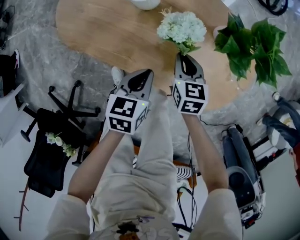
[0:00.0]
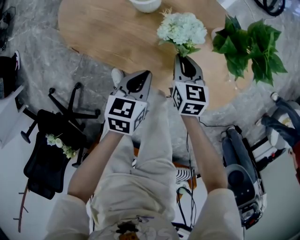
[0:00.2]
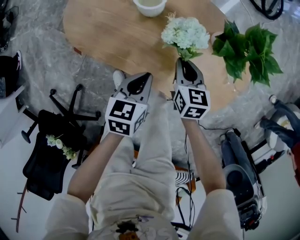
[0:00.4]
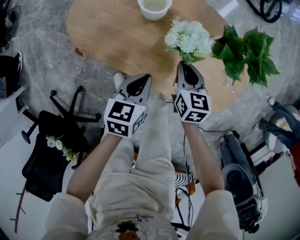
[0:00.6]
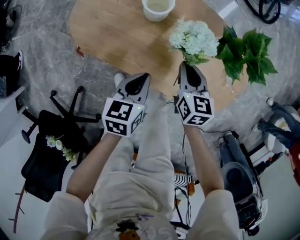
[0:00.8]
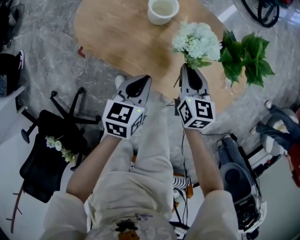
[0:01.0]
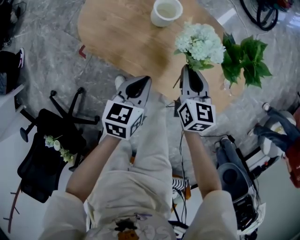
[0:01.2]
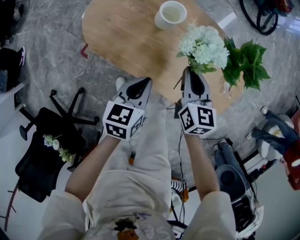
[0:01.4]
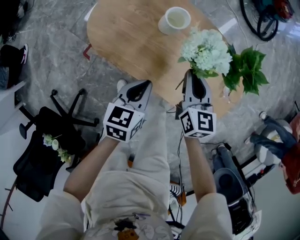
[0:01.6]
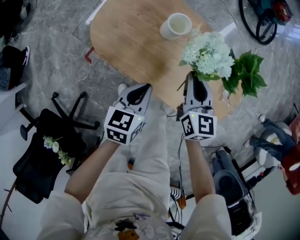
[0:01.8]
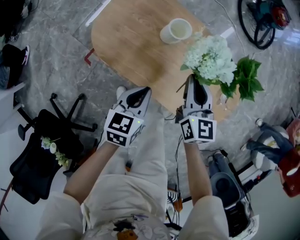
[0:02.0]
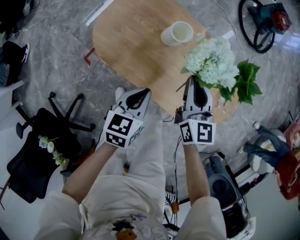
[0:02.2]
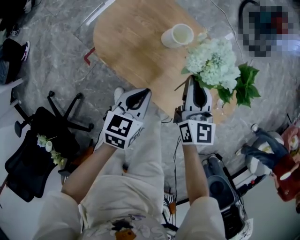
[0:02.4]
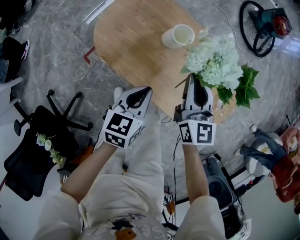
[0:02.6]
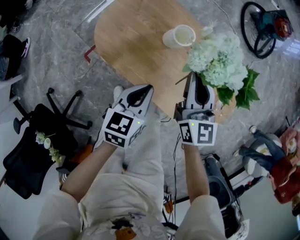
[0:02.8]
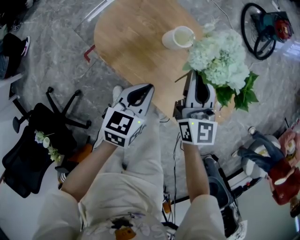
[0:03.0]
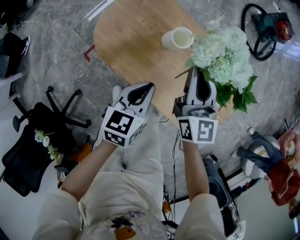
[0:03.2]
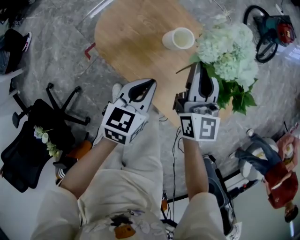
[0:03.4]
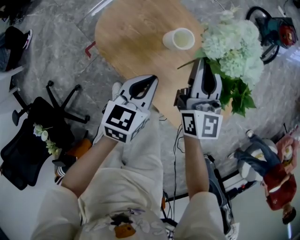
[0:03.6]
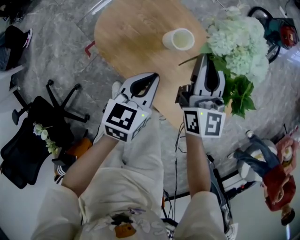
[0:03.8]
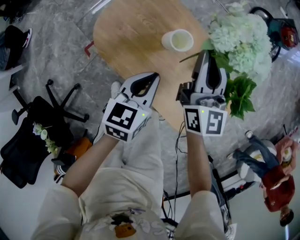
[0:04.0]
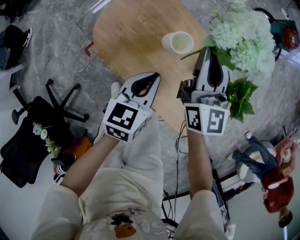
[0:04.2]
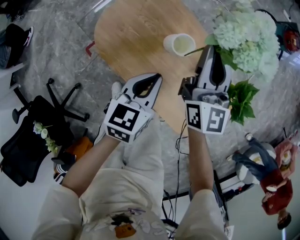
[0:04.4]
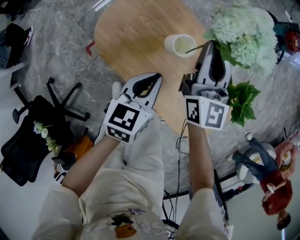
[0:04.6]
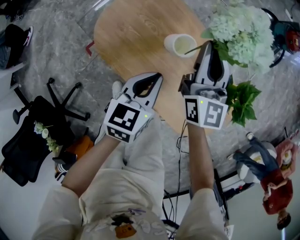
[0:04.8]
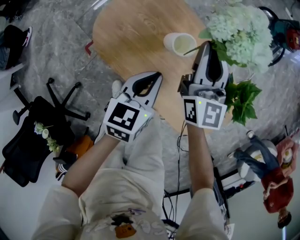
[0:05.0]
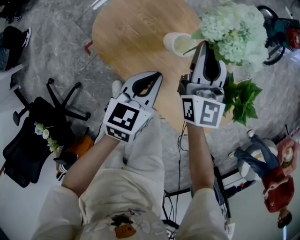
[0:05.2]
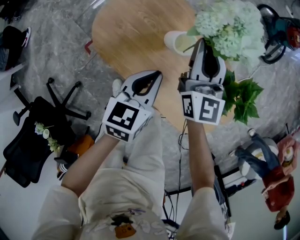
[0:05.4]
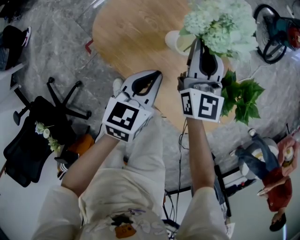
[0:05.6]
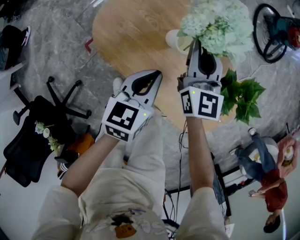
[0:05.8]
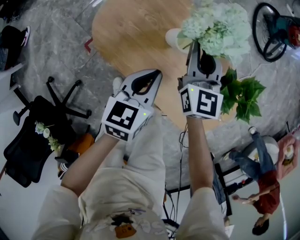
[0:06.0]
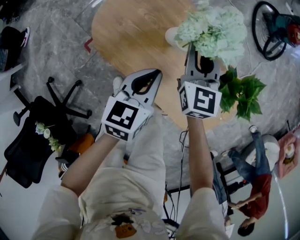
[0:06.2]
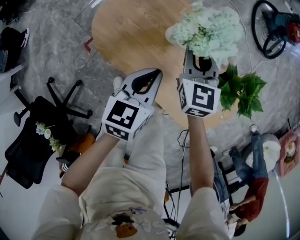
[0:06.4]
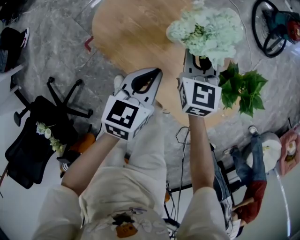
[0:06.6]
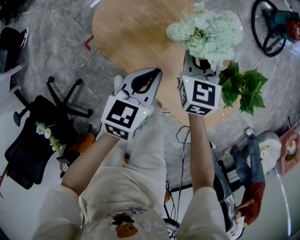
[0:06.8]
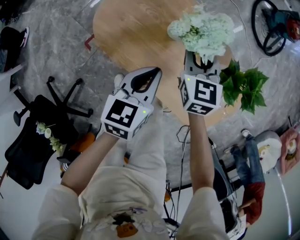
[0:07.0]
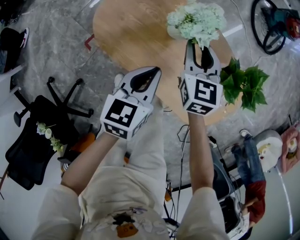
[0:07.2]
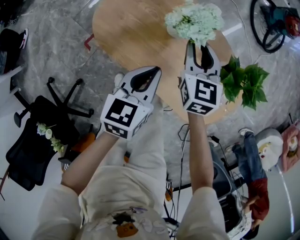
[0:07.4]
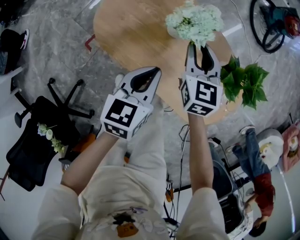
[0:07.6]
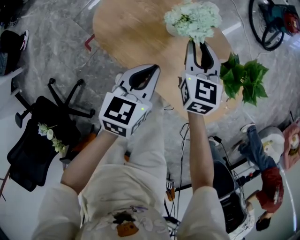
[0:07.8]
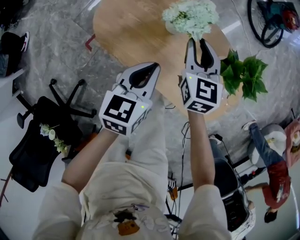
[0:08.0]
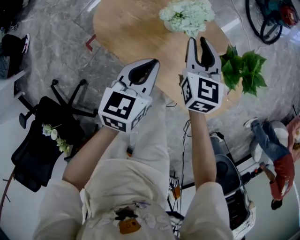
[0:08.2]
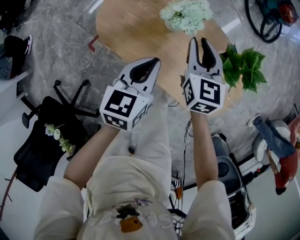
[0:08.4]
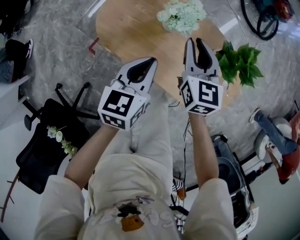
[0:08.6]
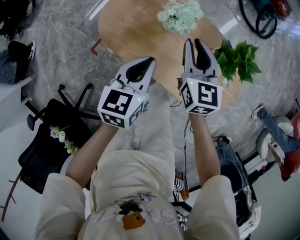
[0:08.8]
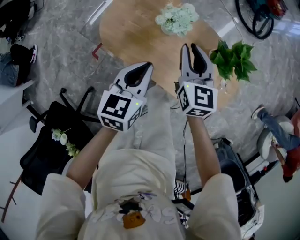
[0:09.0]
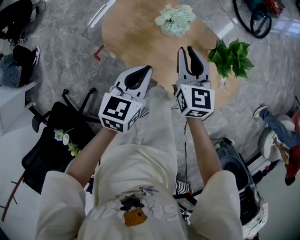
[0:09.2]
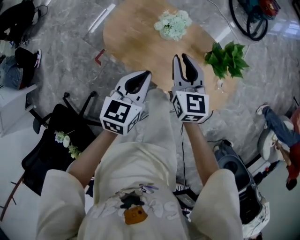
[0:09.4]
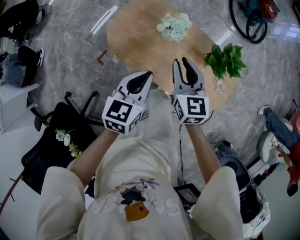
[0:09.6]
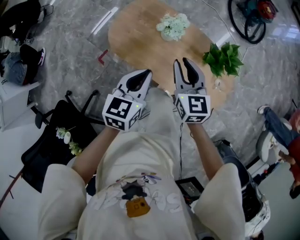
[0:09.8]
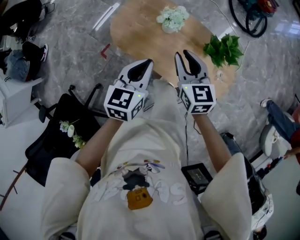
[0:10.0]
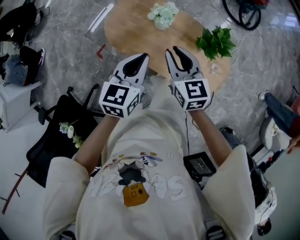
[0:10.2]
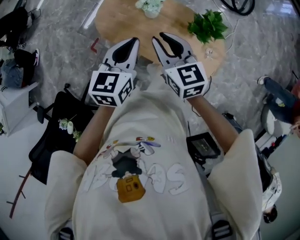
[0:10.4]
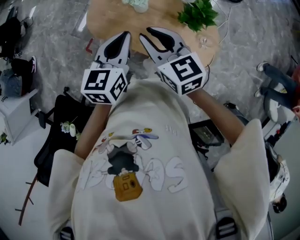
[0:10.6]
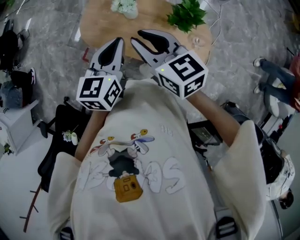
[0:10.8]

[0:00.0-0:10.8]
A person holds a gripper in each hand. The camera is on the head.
0:00.0 to 0:01.6: The left gripper is displaced upward and to the left by roughly 15 cm; the right gripper travels upward by approximately 20 cm, and changes its angle by about 20 degrees.
0:01.6 to 0:03.0: The right gripper shifts approximately 10 cm upward and forward, while the left gripper shifts by roughly 5 cm.
0:03.0 to 0:04.6: The right gripper shifts some 10 cm forward, while the left gripper travels forward by some 10 cm.
0:04.6 to 0:06.2: The right gripper moves downward, roughly 10 cm, and turns by some 20 degrees.
0:06.2 to 0:07.8: The grippers stay close to where they were, moving slightly.
0:07.8 to 0:09.2: The right gripper shifts approximately 15 cm upward and backward; the left gripper travels upward by approximately 10 cm.
0:09.2 to 0:10.8: The right gripper goes approximately 25 cm upward and backward, and rotates some 20 degrees. The left gripper moves upward, roughly 15 cm.

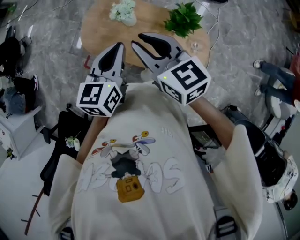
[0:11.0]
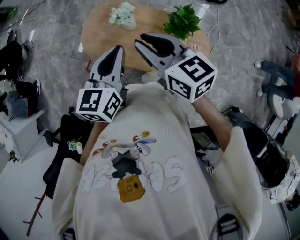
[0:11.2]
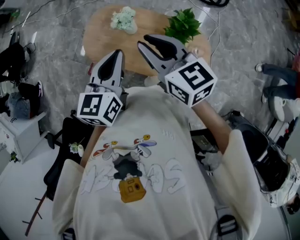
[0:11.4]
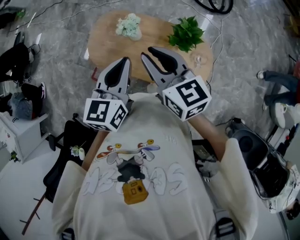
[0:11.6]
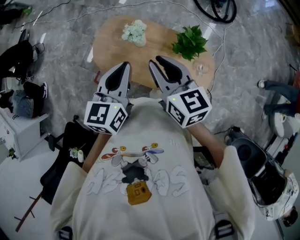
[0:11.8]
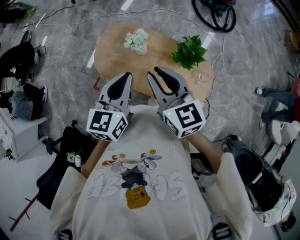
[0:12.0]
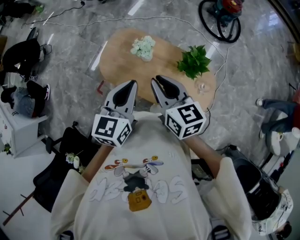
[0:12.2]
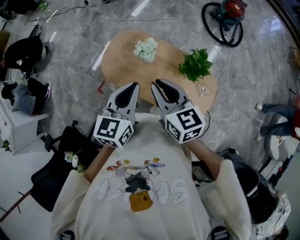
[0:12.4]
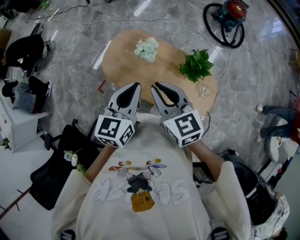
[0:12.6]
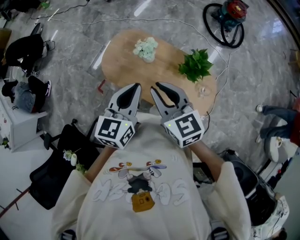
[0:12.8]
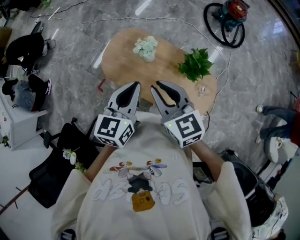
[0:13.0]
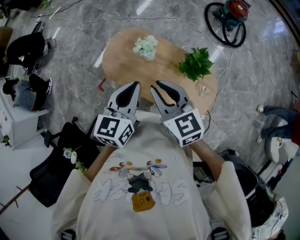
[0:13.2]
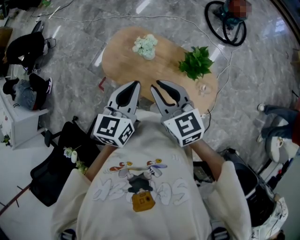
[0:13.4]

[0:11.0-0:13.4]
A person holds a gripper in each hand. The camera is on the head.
0:11.0 to 0:13.4: The grippers stay close to where they were, moving slightly.

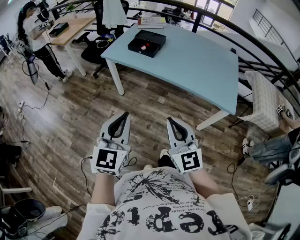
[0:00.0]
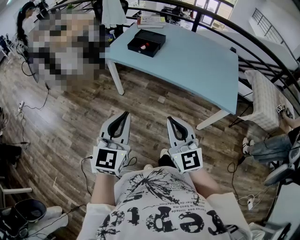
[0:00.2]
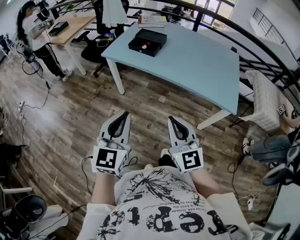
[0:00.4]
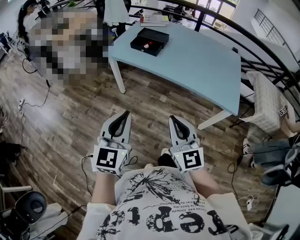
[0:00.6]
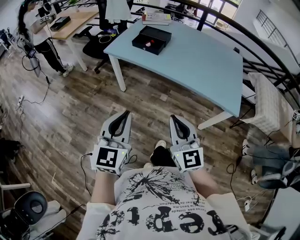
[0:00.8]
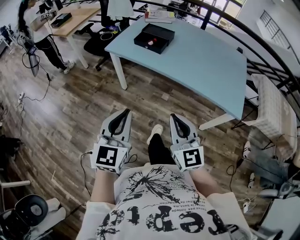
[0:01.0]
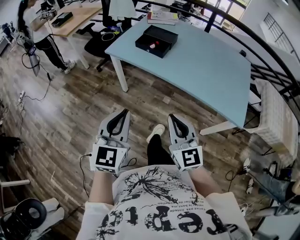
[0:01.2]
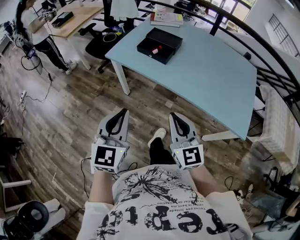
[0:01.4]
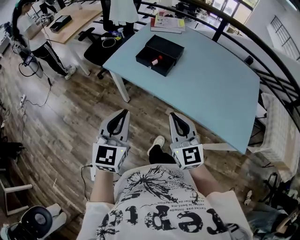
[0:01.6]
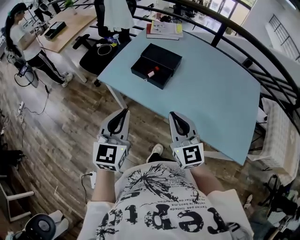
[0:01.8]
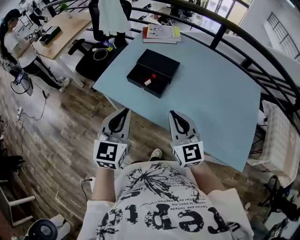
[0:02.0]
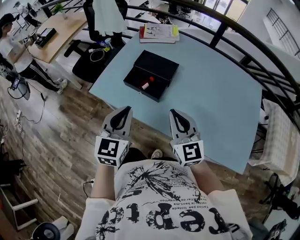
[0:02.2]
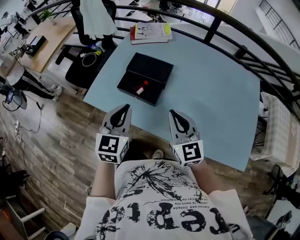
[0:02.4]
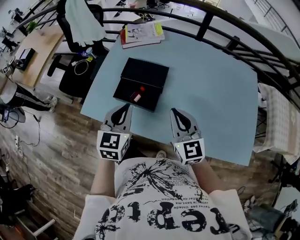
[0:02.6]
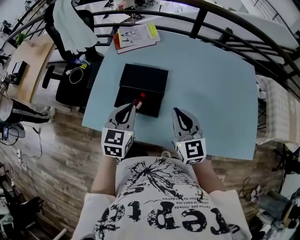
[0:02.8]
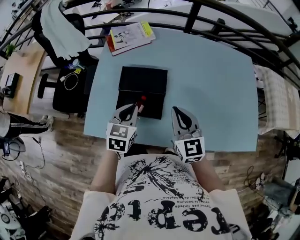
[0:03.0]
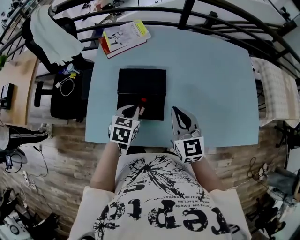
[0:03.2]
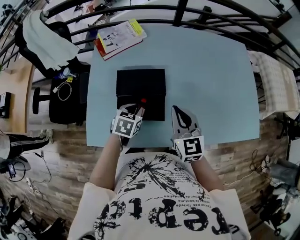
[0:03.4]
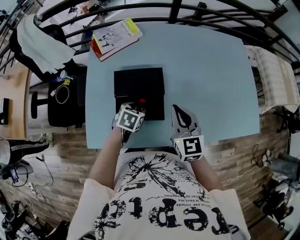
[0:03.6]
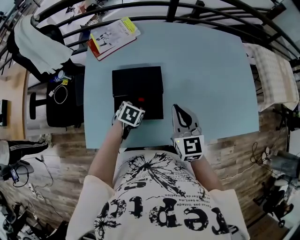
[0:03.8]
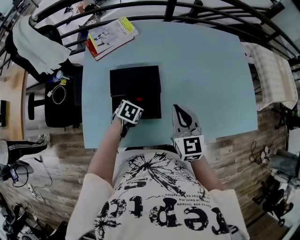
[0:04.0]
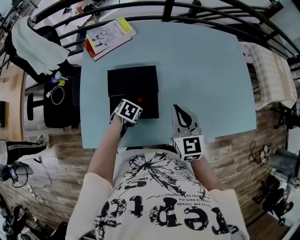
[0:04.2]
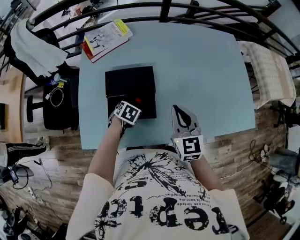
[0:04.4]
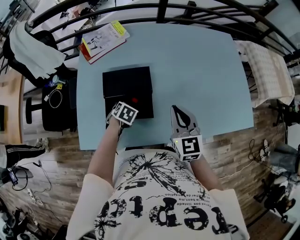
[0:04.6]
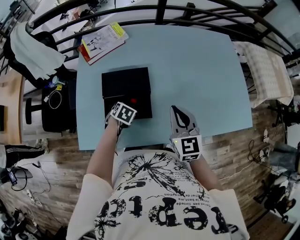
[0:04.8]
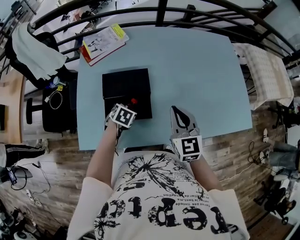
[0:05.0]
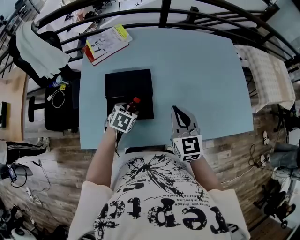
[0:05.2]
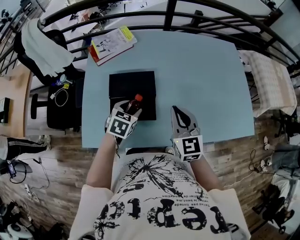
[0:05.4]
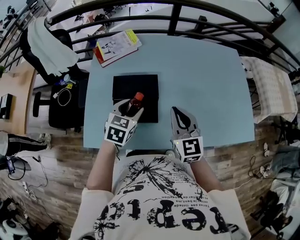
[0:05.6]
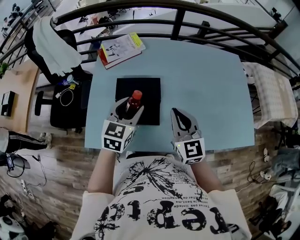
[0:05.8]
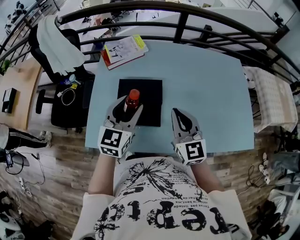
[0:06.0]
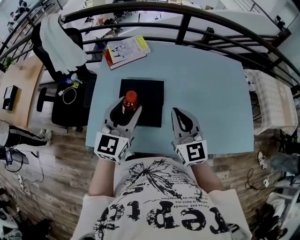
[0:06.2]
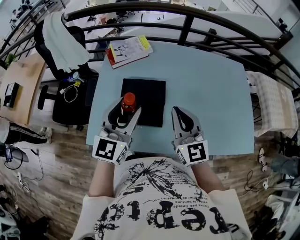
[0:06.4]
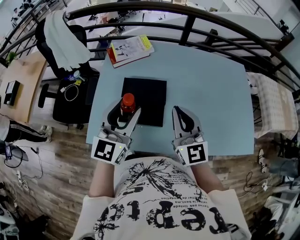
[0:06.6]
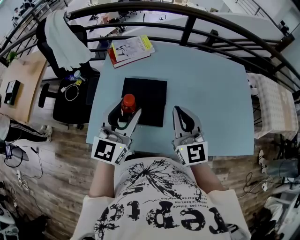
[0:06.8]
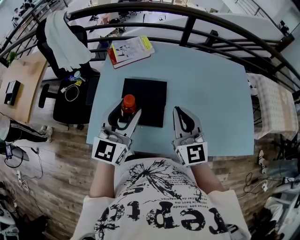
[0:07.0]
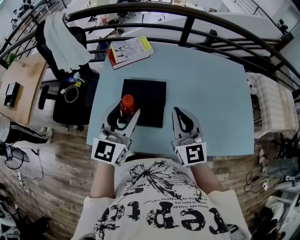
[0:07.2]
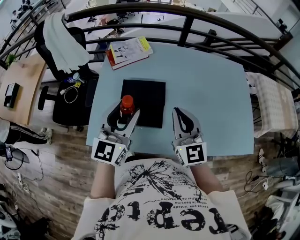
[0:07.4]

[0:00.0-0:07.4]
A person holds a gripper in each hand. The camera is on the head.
0:00.0 to 0:01.4: The grippers both shift forward by approximately 20 cm.
0:01.4 to 0:03.0: Both grippers are carried roughly 50 cm. The left gripper rotates approximately 40 degrees. The right gripper turns by some 30 degrees.
0:03.0 to 0:04.4: The left gripper travels downward by some 20 cm, angles its fingers downward, by approximately 40 degrees, and opens.
0:04.4 to 0:06.0: The right gripper travels upward by approximately 5 cm; the left gripper is displaced upward by some 30 cm, and angles its fingers upward, by about 60 degrees.
0:06.0 to 0:07.4: The left gripper shifts by about 5 cm.

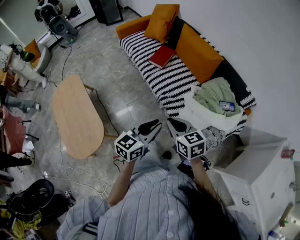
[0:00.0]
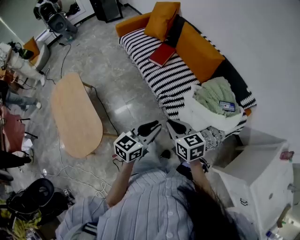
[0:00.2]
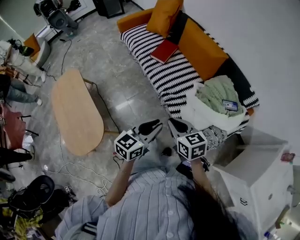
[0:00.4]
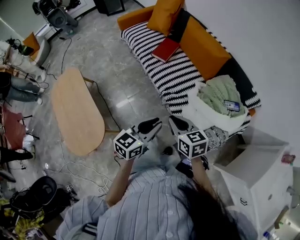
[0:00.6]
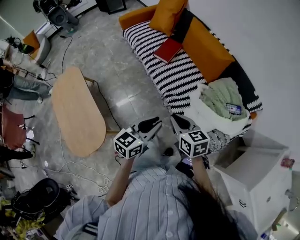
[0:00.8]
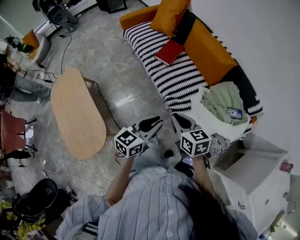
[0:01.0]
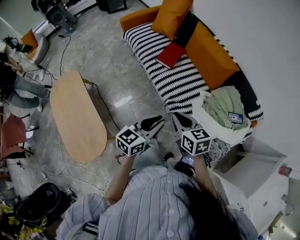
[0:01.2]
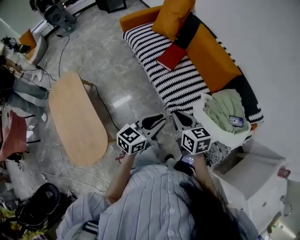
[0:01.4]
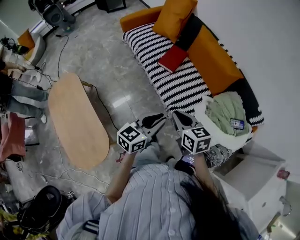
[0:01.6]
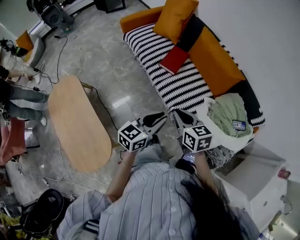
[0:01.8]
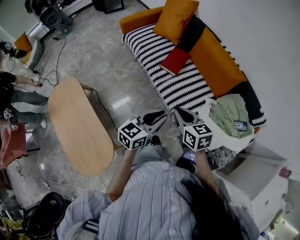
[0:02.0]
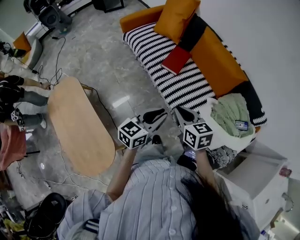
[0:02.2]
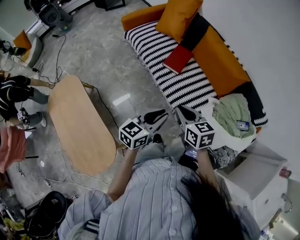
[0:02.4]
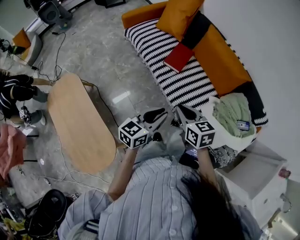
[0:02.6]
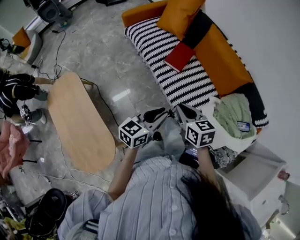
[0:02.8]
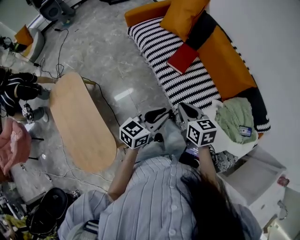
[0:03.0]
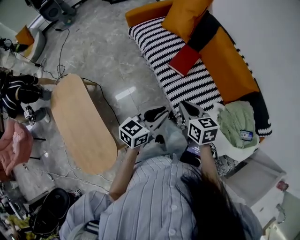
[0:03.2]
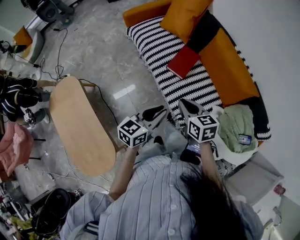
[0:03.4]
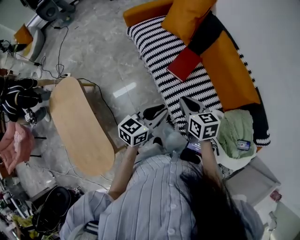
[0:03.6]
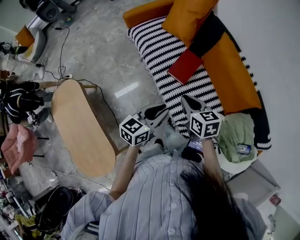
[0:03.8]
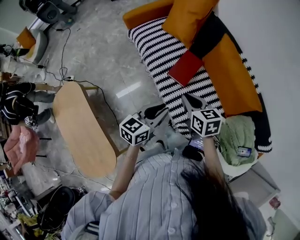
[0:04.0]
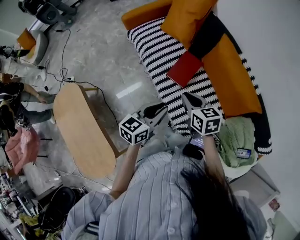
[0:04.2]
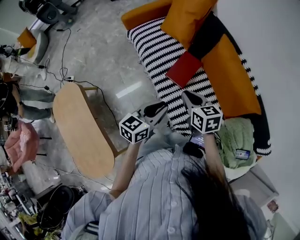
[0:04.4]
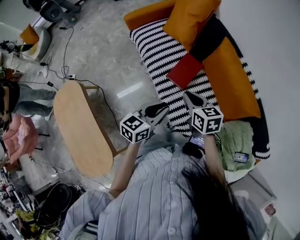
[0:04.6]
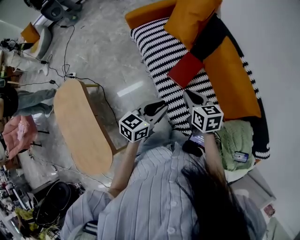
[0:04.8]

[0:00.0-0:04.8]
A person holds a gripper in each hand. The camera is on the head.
0:00.0 to 0:01.6: The two grippers go roughly 20 cm forward and to the left.
0:01.6 to 0:03.2: Both grippers move forward and to the left, about 15 cm.
0:03.2 to 0:04.8: Both grippers move forward, roughly 20 cm.
